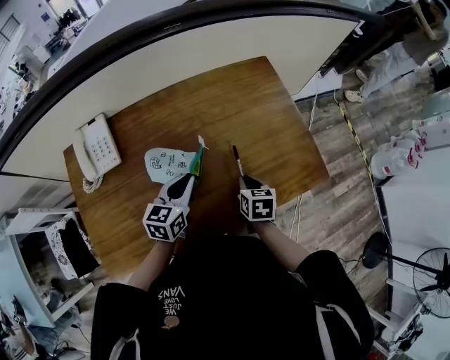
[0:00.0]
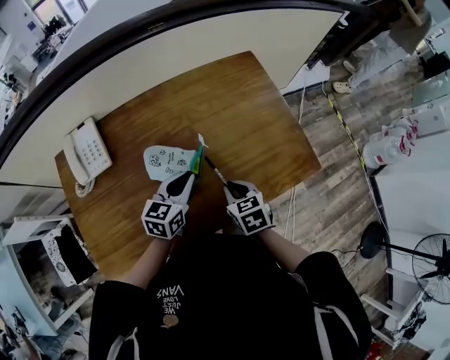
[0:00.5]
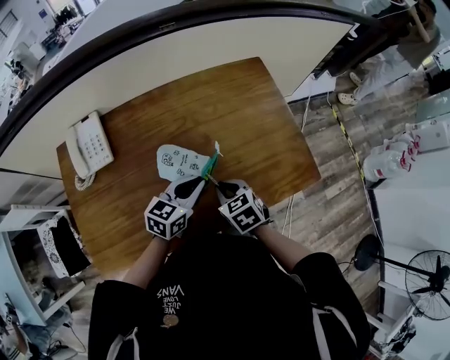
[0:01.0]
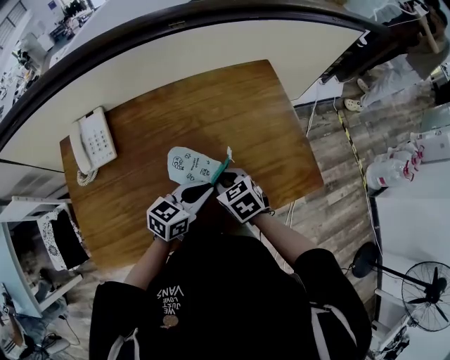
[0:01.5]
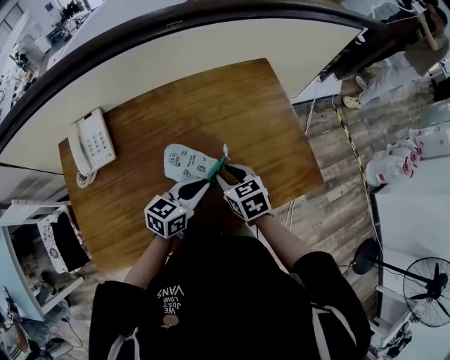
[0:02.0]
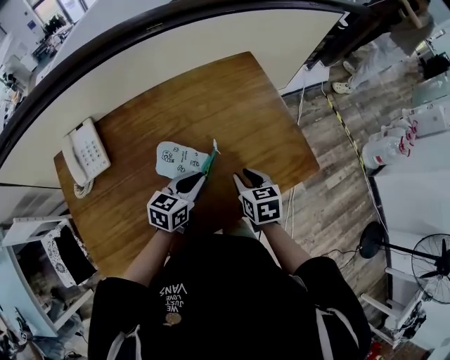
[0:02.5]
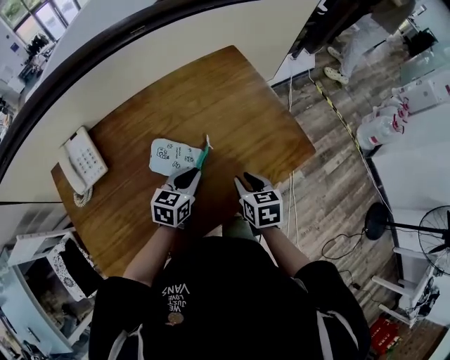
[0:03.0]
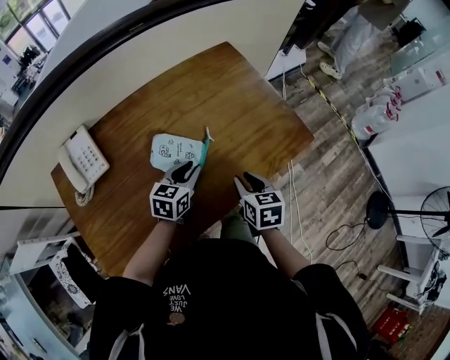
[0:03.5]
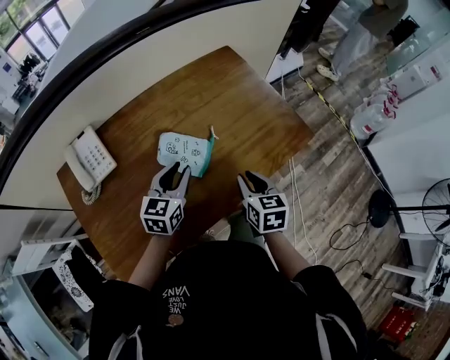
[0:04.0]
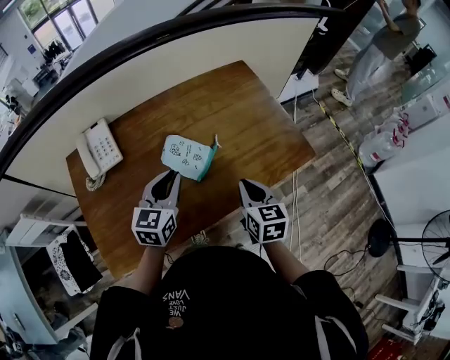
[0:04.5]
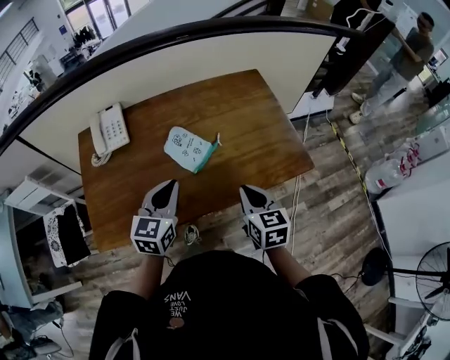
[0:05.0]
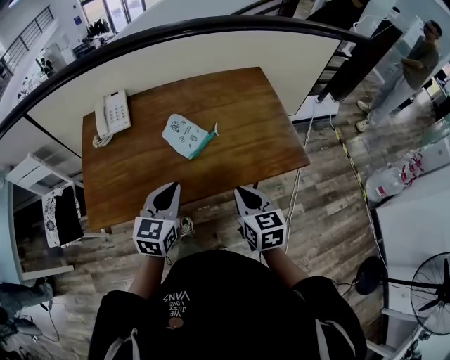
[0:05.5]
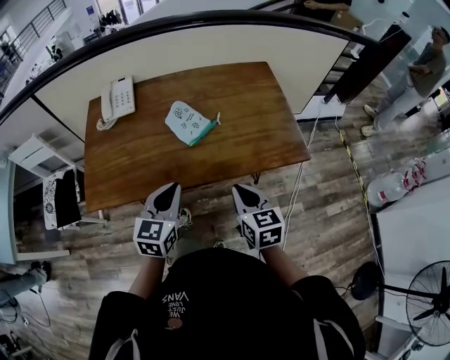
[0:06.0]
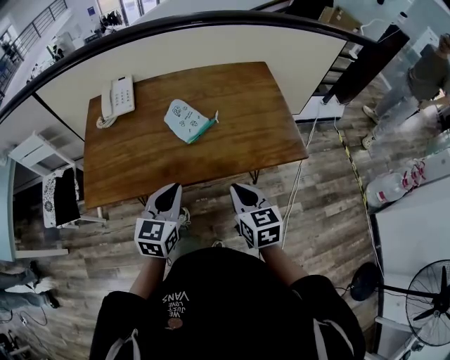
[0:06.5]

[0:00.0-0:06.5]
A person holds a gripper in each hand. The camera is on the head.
0.0 to 2.0 s: The left gripper goes roughly 5 cm to the right, while the right gripper moves to the left and upward, about 10 cm, and rotates roughly 30 degrees.
2.0 to 4.5 s: The right gripper shifts some 15 cm backward, to the right and upward, and changes its angle by roughly 30 degrees, while the left gripper shifts about 15 cm to the left, upward and backward, and rotates about 30 degrees.
4.5 to 6.5 s: The right gripper shifts roughly 15 cm backward, and swivels about 20 degrees. Meanwhile the left gripper is displaced backward by some 20 cm.

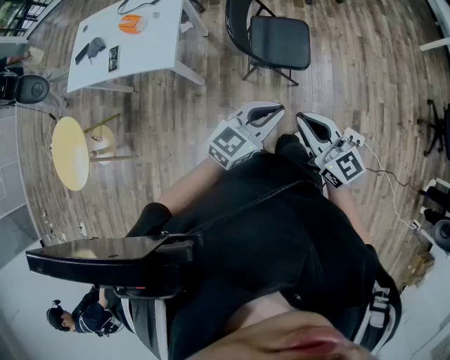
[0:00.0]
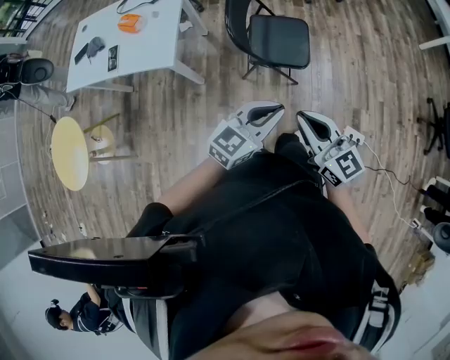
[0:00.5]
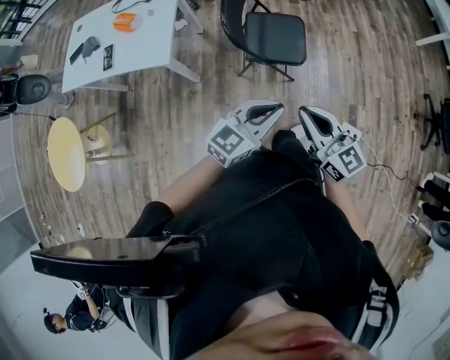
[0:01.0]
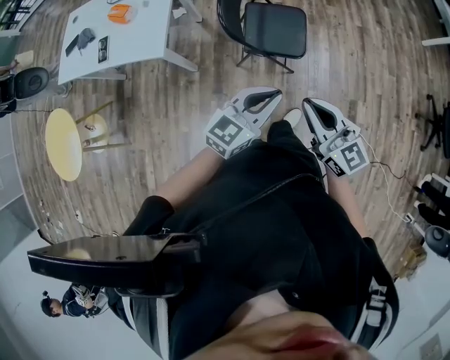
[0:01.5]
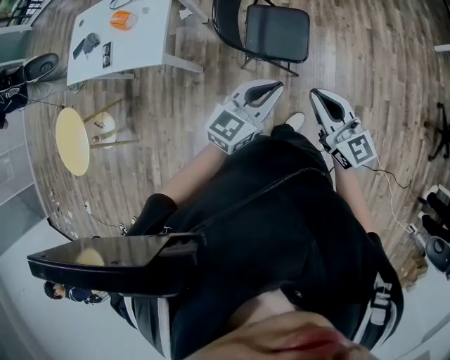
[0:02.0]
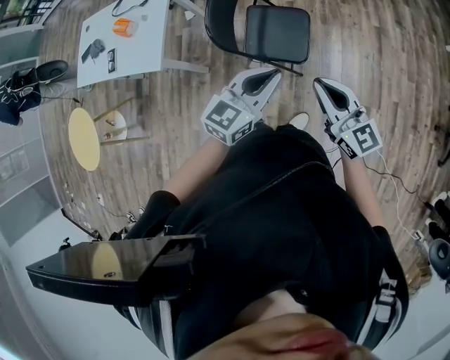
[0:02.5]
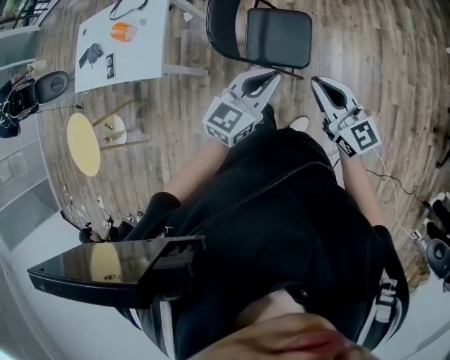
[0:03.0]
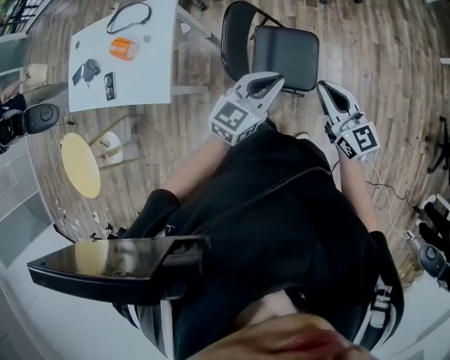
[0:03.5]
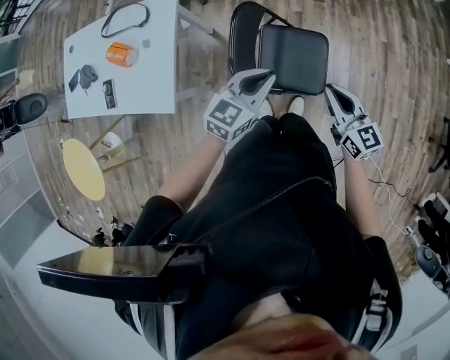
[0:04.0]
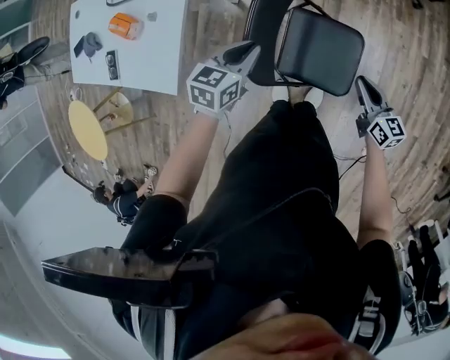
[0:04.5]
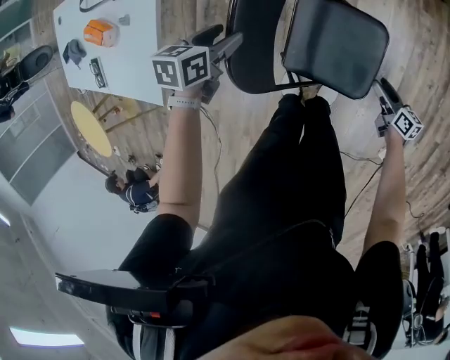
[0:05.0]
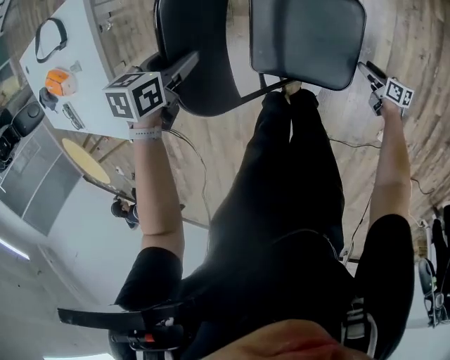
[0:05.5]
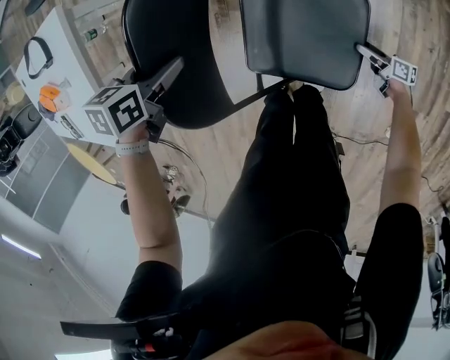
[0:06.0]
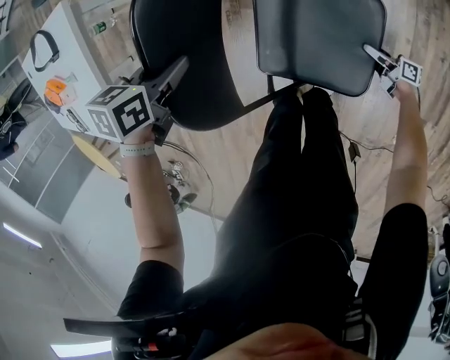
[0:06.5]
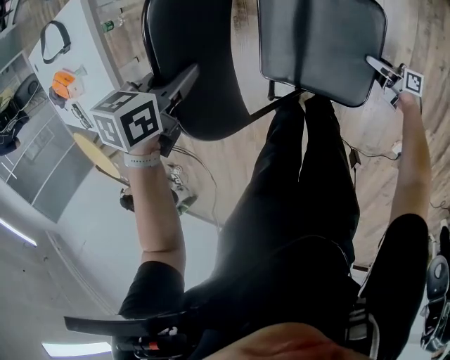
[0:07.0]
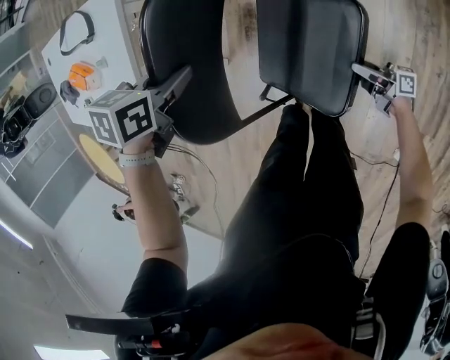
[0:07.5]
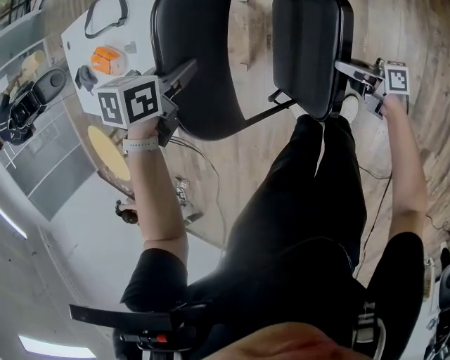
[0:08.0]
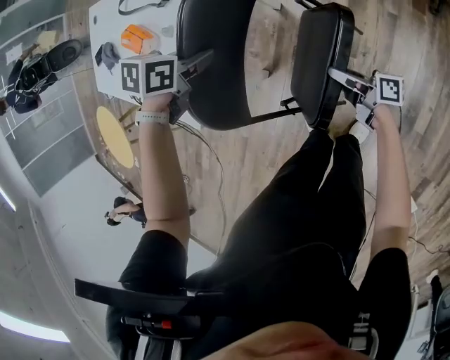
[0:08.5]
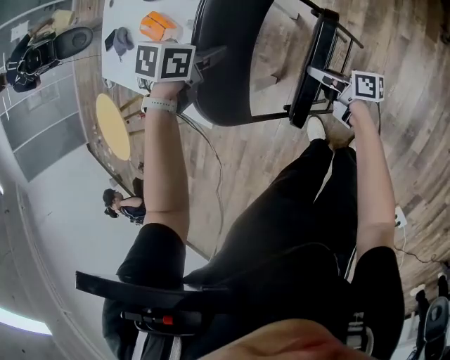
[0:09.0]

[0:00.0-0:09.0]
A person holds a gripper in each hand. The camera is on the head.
0.0 to 2.0 s: The grippers both shift forward and to the right by roughly 15 cm.
2.0 to 4.5 s: The left gripper goes some 50 cm forward, downward and to the left, and turns by some 30 degrees. Meanwhile the right gripper is displaced forward and downward by some 50 cm, and rotates approximately 30 degrees.
4.5 to 7.0 s: The left gripper goes roughly 15 cm downward, swivels some 30 degrees, and opens, then closes once more, while the right gripper moves downward, approximately 40 cm, rolls clockwise, seen from behind, by about 50 degrees, and opens its fingers.
7.0 to 9.0 s: The left gripper shifts by roughly 25 cm. The right gripper changes place by some 50 cm, and closes.

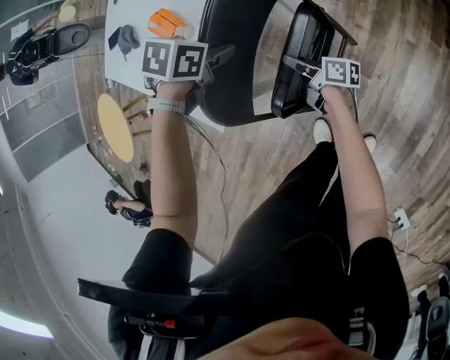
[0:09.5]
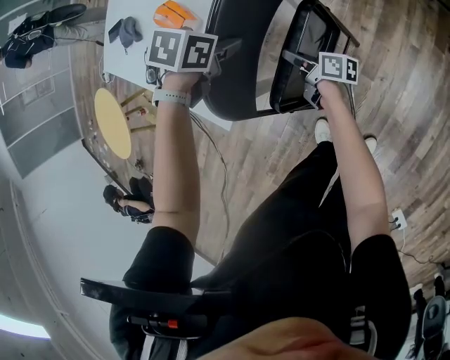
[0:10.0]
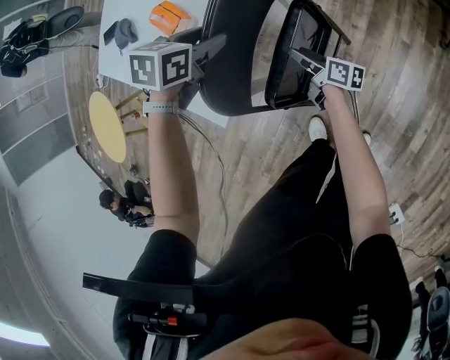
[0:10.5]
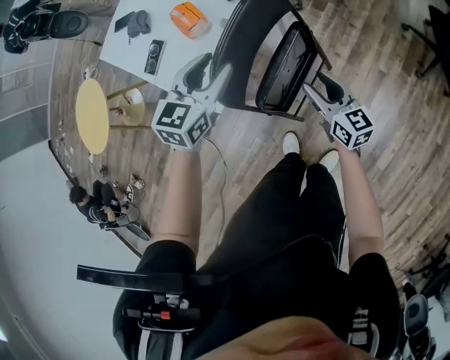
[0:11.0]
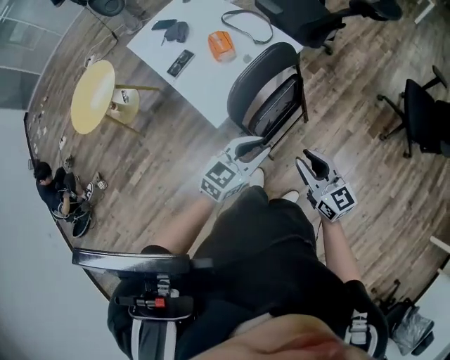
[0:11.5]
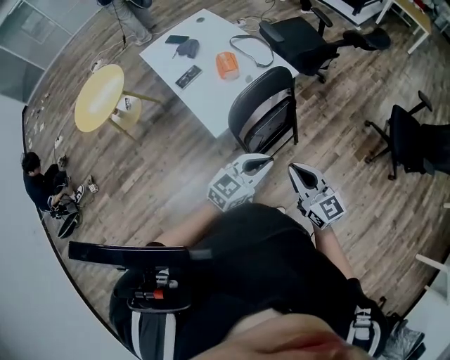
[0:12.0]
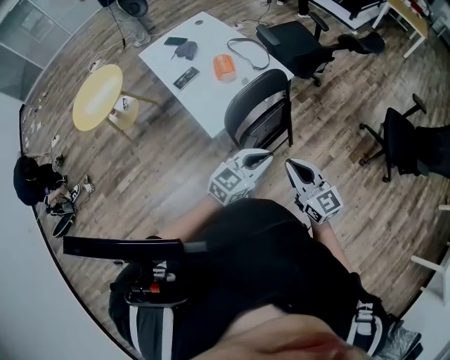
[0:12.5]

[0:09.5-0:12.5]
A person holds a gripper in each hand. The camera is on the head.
9.5 to 11.0 s: The right gripper goes some 20 cm upward and to the right, and rolls counterclockwise, seen from behind, by some 60 degrees. The left gripper is displaced upward and backward by some 15 cm, tips its fingers upward by roughly 40 degrees, and opens its fingers.
11.0 to 12.5 s: The left gripper is displaced backward, upward and to the right by some 30 cm, and closes its fingers. Meanwhile the right gripper heads upward and backward, covering some 35 cm, rotates roughly 30 degrees, and closes up.

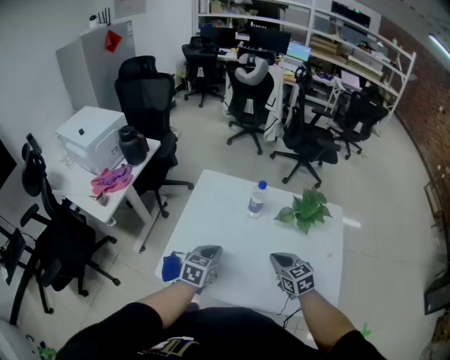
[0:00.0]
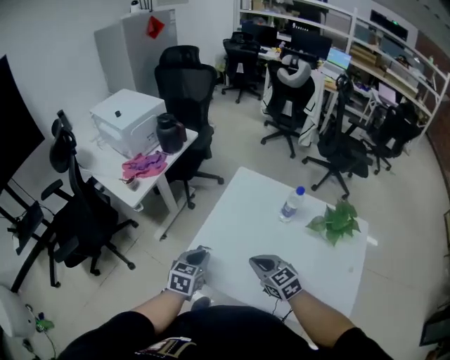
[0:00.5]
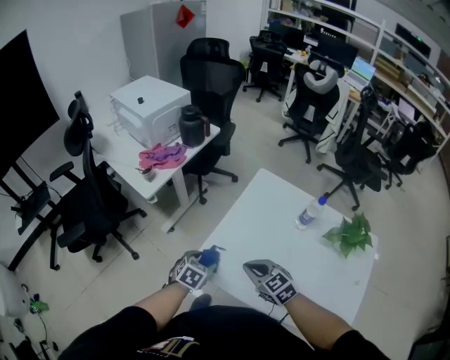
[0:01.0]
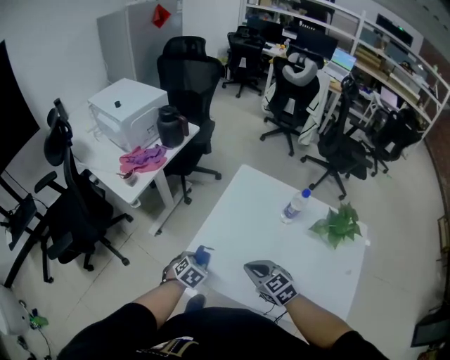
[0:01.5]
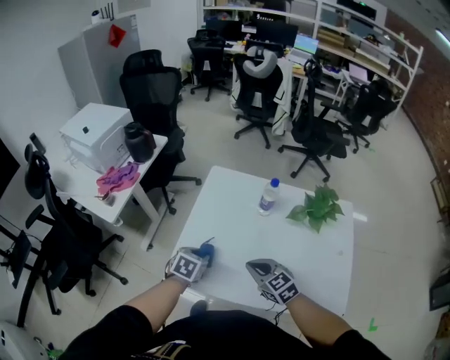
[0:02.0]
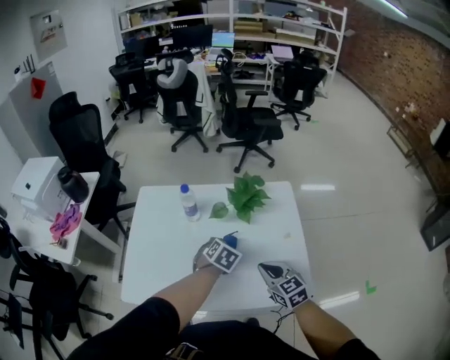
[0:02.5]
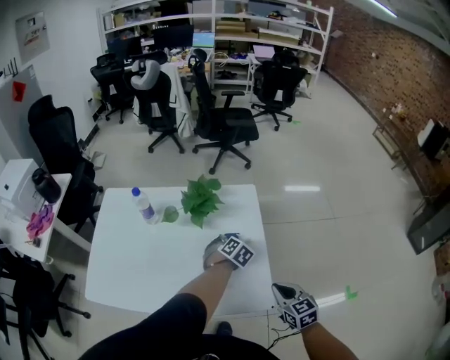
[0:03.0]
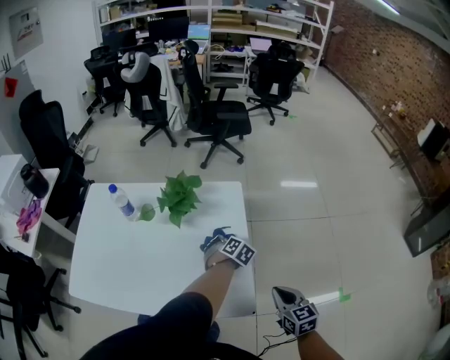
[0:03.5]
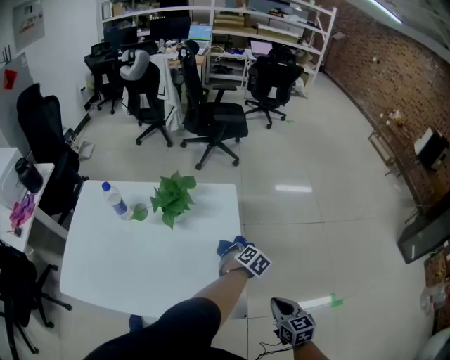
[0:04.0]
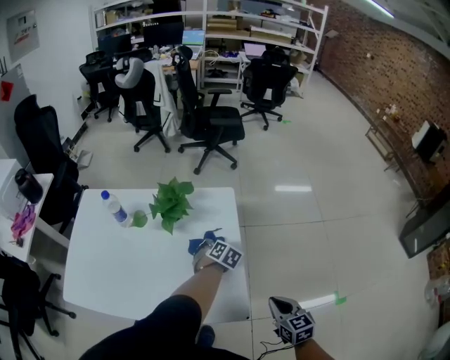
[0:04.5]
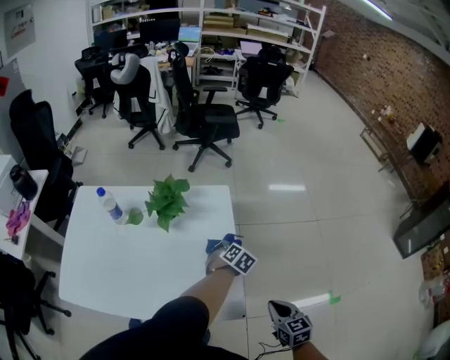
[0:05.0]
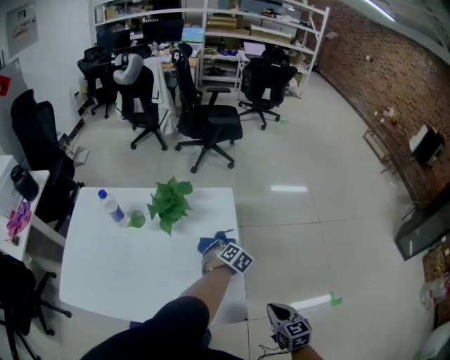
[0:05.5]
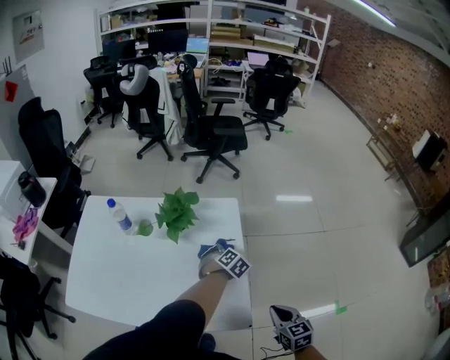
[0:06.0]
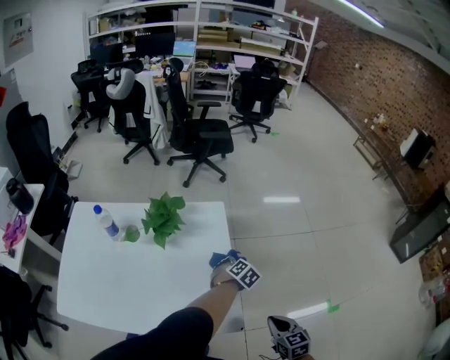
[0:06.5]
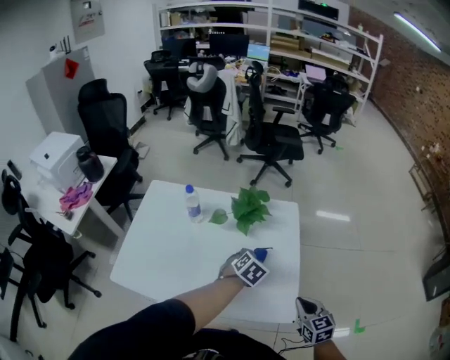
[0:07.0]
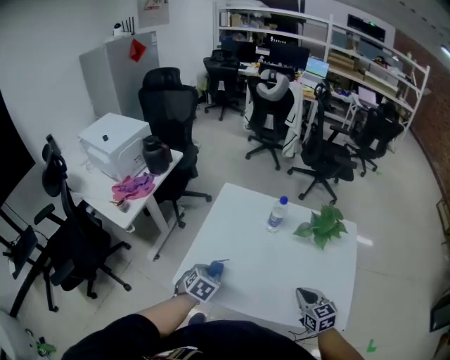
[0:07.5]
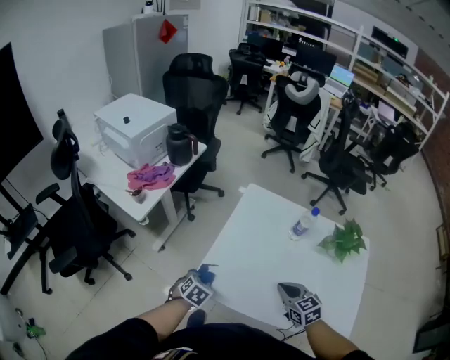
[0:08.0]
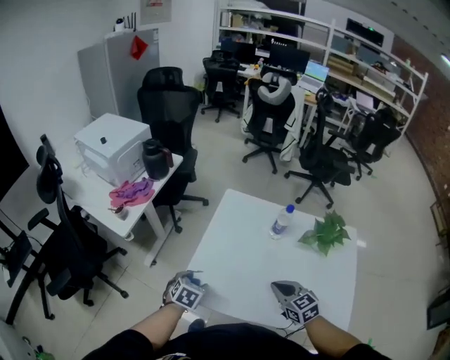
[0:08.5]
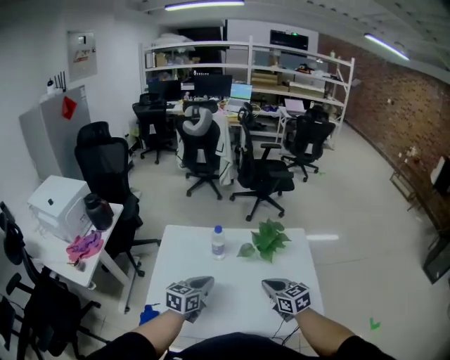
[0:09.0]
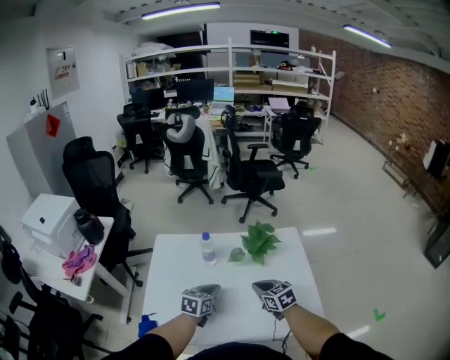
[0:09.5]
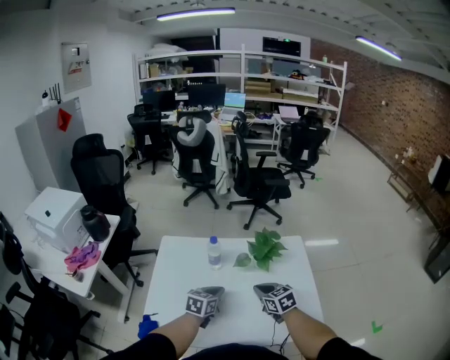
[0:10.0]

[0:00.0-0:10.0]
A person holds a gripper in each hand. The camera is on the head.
0.0 to 2.0 s: The left gripper moves to the left, approximately 10 cm, and opens up; the right gripper travels to the left by some 10 cm.
2.0 to 4.0 s: The pair of grippers is taken about 70 cm. The right gripper rotates about 50 degrees. The left gripper changes its angle by about 40 degrees.
4.0 to 6.0 s: The left gripper moves left and right over some 10 cm, changing direction 2 times.
6.0 to 8.0 s: The pair of grippers is taken approximately 70 cm. The left gripper changes its angle by roughly 40 degrees. Meanwhile the right gripper swivels approximately 40 degrees.
8.0 to 10.0 s: The left gripper moves to the right, roughly 35 cm, tilts its fingers some 30 degrees upward, and closes its fingers. Meanwhile the right gripper moves to the right, roughly 20 cm, and rotates about 20 degrees.
